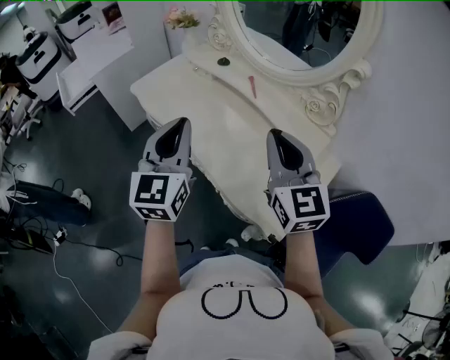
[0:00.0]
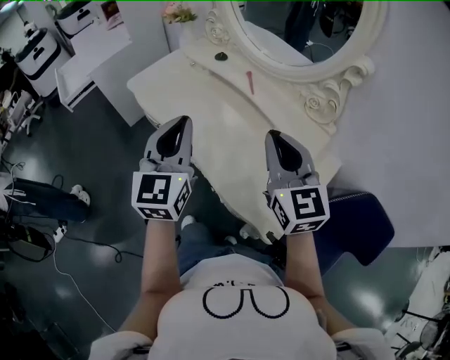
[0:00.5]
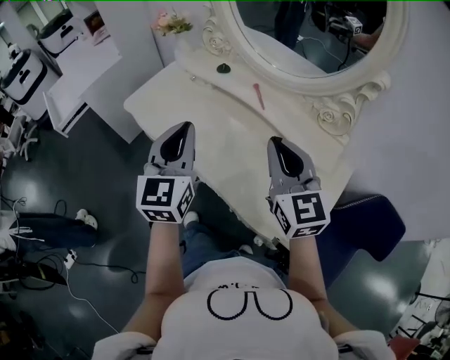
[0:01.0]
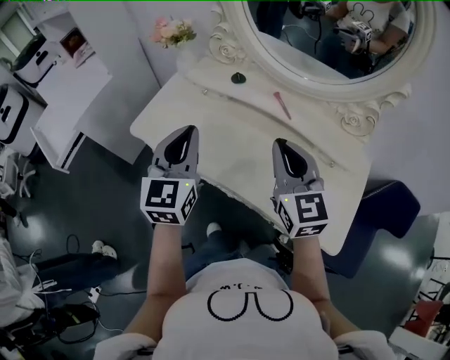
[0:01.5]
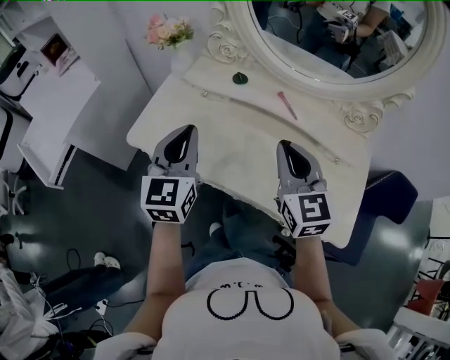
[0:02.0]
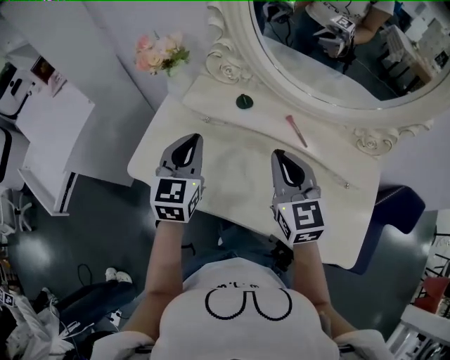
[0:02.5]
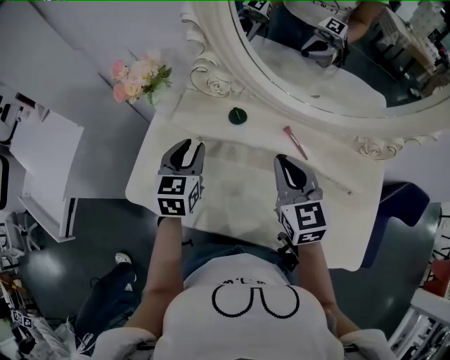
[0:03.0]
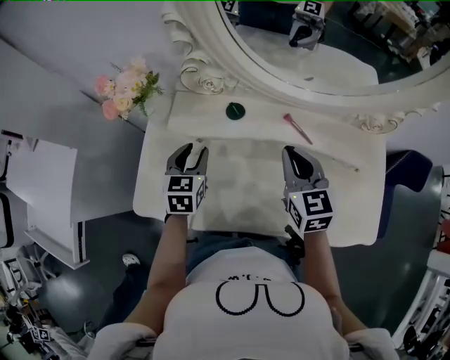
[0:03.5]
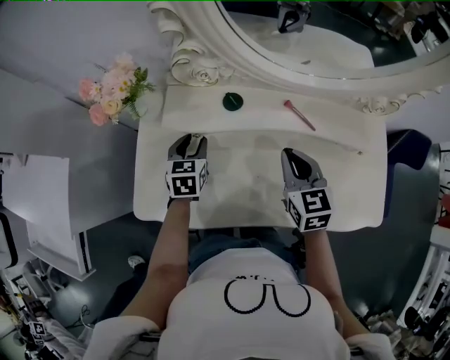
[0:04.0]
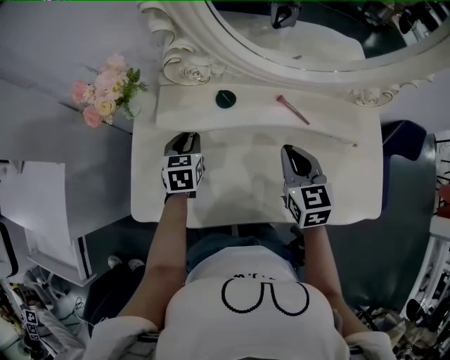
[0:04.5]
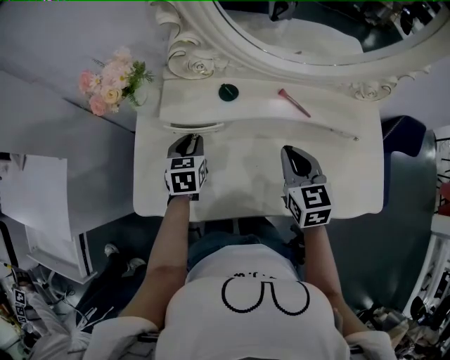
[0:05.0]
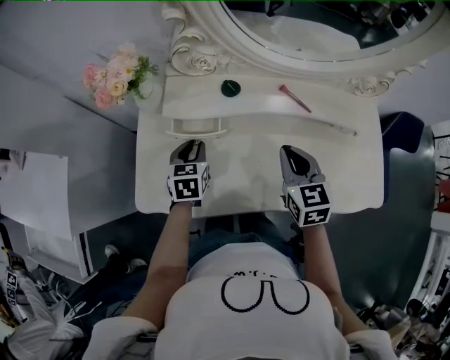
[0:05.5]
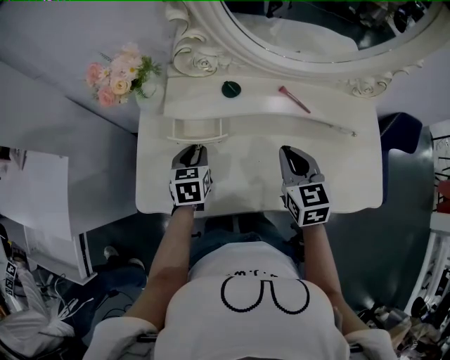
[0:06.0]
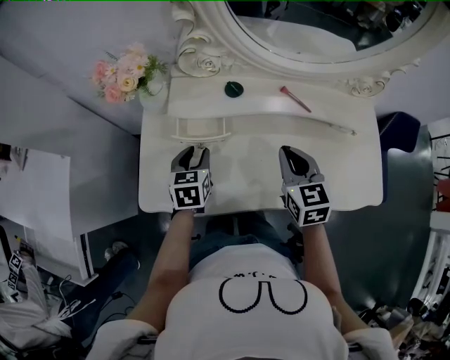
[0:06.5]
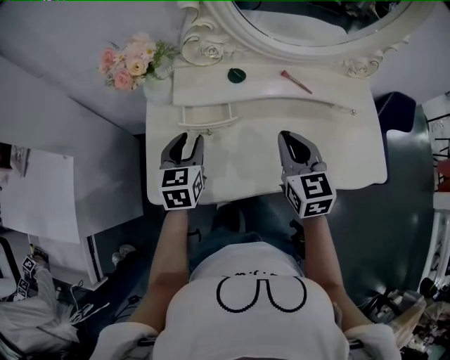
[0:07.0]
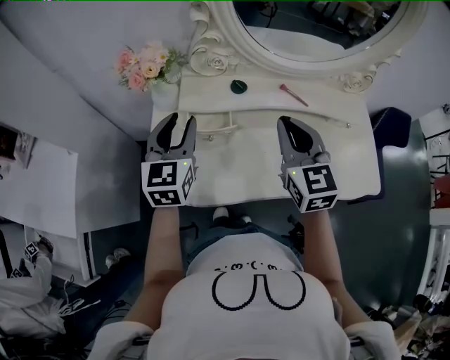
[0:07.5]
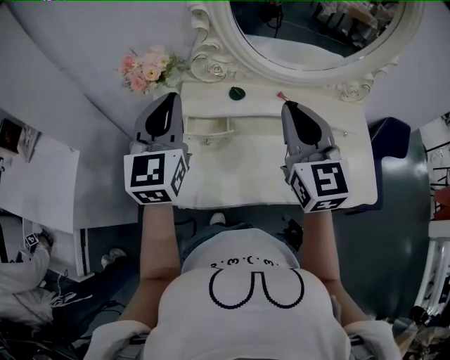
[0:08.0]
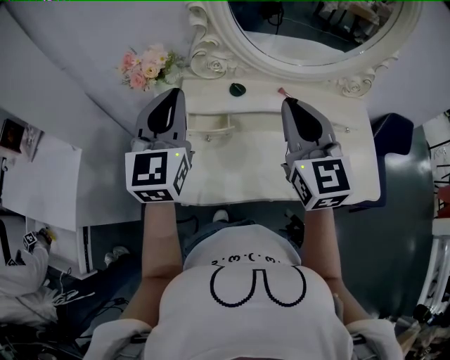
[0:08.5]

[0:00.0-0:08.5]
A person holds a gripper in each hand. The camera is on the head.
0:00.0 to 0:02.0: The right gripper shifts roughly 25 cm to the left and forward, and rotates about 20 degrees, while the left gripper is displaced forward and to the left by roughly 30 cm, and changes its angle by about 20 degrees.
0:02.0 to 0:04.0: The left gripper heads forward and downward, covering roughly 35 cm, tips its fingers downward by some 30 degrees, and opens its fingers. Meanwhile the right gripper travels forward and downward by approximately 20 cm, and turns by approximately 30 degrees.
0:04.0 to 0:06.5: Both grippers travel together backward, about 5 cm.
0:06.5 to 0:08.5: The grippers both shift upward by some 25 cm. The right gripper turns by some 30 degrees; the left gripper angles its fingers upward, by about 40 degrees, and closes its fingers.

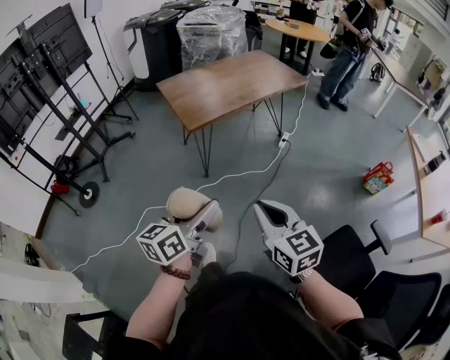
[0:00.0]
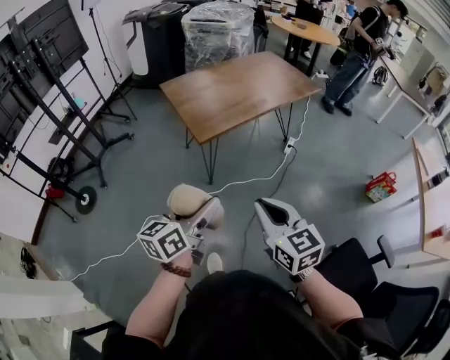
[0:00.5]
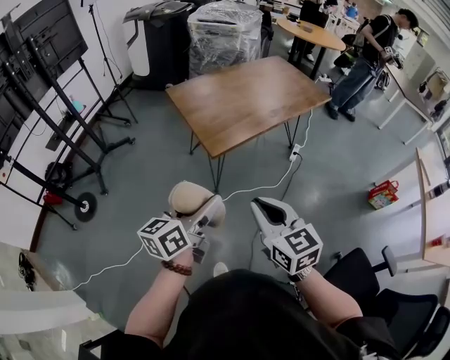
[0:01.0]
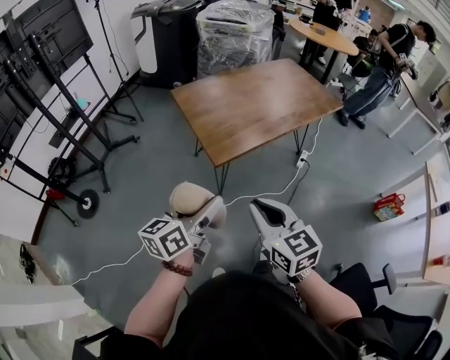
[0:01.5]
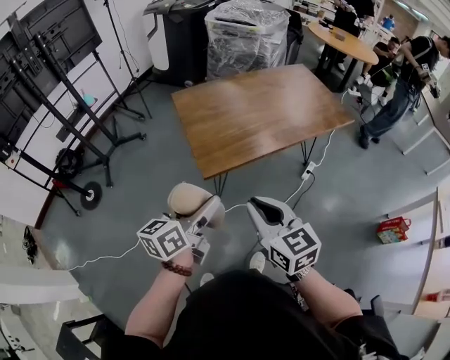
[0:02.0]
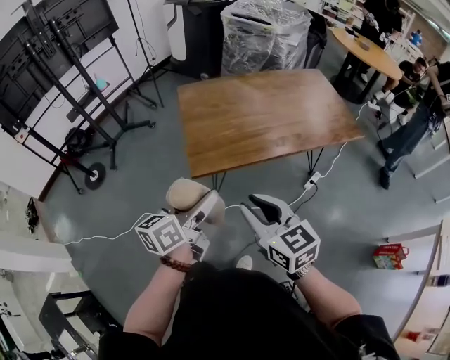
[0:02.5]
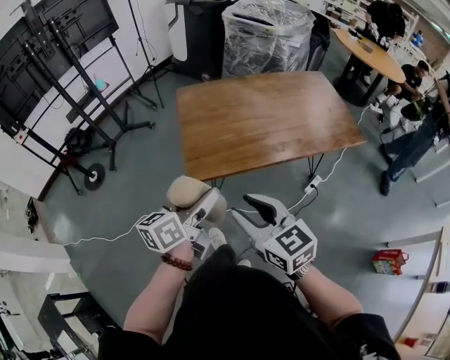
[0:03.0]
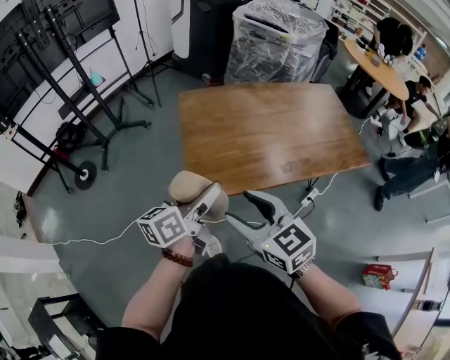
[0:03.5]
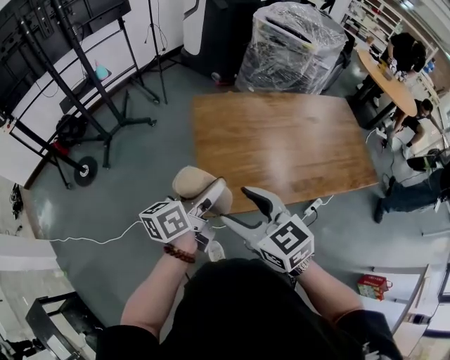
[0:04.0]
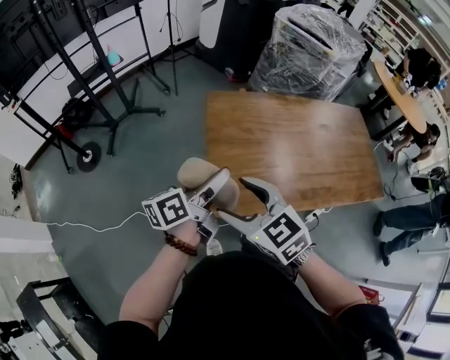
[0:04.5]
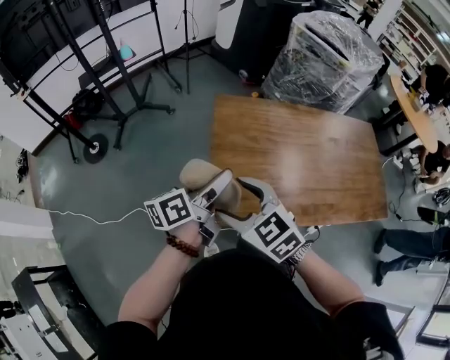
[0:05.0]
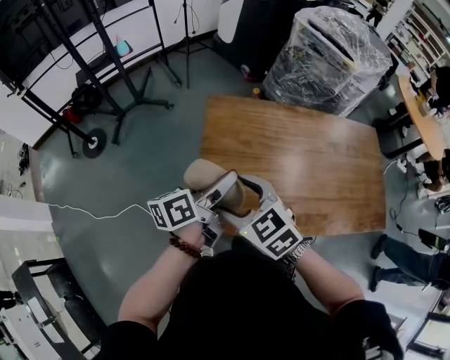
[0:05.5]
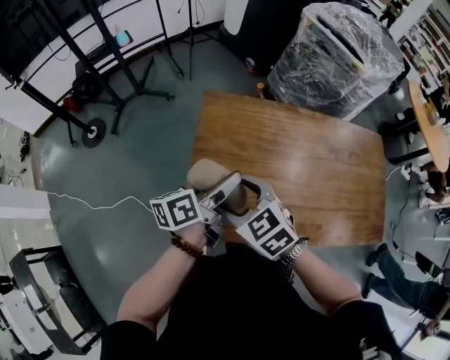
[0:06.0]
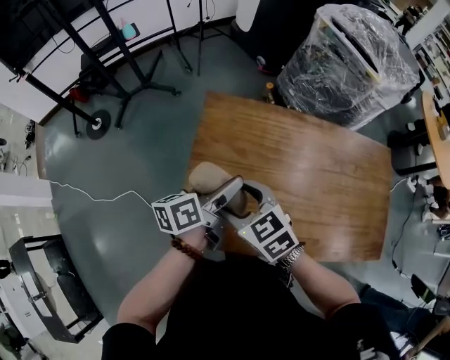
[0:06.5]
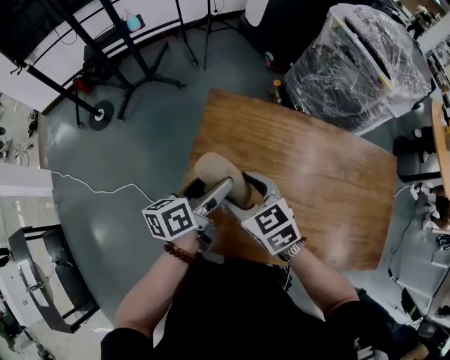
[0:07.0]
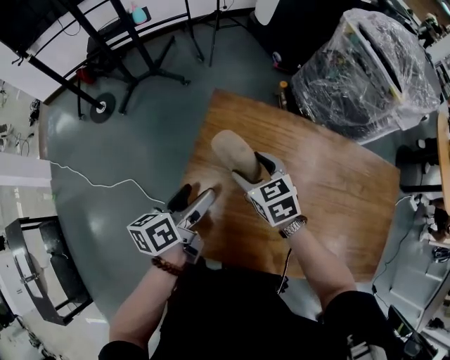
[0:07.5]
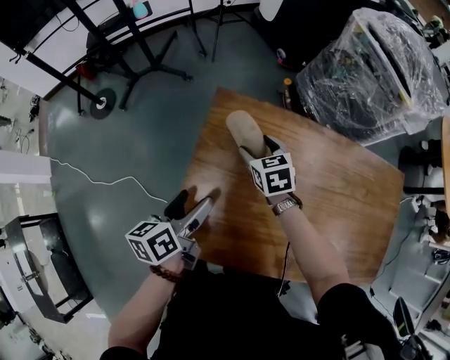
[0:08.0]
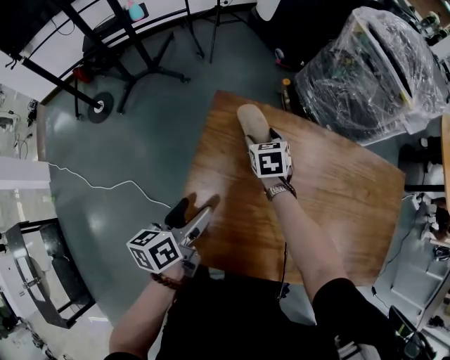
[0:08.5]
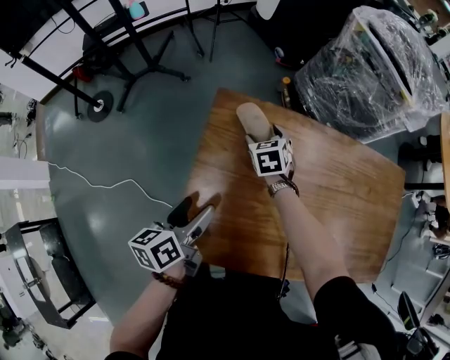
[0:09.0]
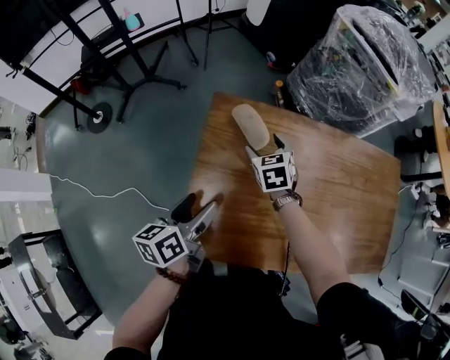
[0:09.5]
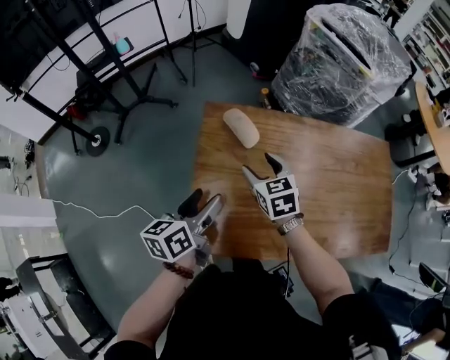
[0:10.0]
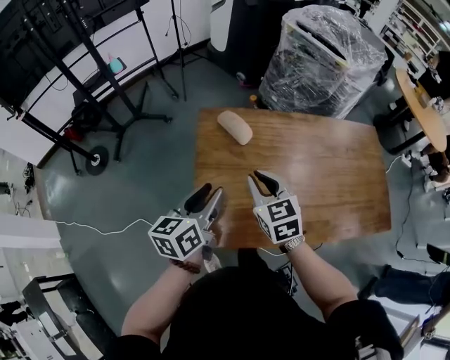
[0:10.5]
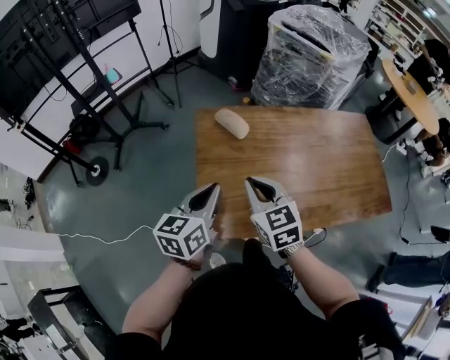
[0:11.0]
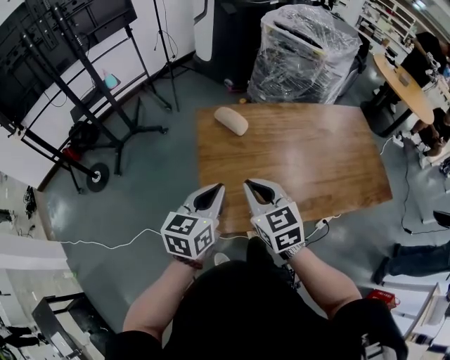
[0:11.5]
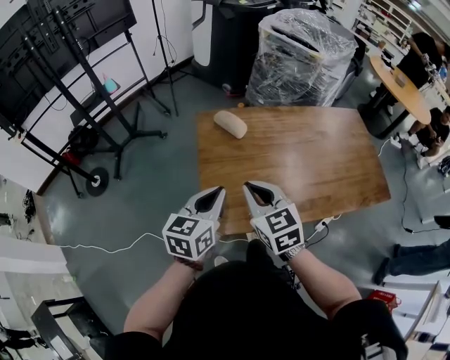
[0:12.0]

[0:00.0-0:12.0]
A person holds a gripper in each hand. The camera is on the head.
0:00.0 to 0:02.0: Both grippers travel together forward, about 35 cm.
0:02.0 to 0:04.0: The grippers both shift forward by approximately 20 cm. The right gripper rotates roughly 30 degrees, and opens.
0:04.0 to 0:06.0: The right gripper heads forward, downward and to the right, covering approximately 20 cm, and turns by about 30 degrees, while the left gripper travels forward and to the right by about 15 cm.
0:06.0 to 0:08.0: The left gripper goes approximately 10 cm downward and to the left, and turns by some 20 degrees, while the right gripper moves forward, downward and to the right, about 30 cm.
0:08.0 to 0:10.0: The right gripper shifts roughly 10 cm backward and upward, while the left gripper shifts by some 5 cm.
0:10.0 to 0:12.0: The left gripper heads backward and upward, covering roughly 10 cm, turns by approximately 30 degrees, and closes its fingers, while the right gripper is displaced backward and upward by about 20 cm, and closes.

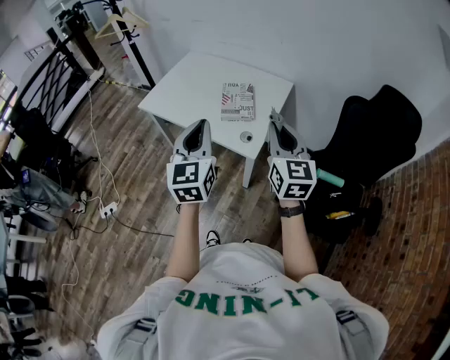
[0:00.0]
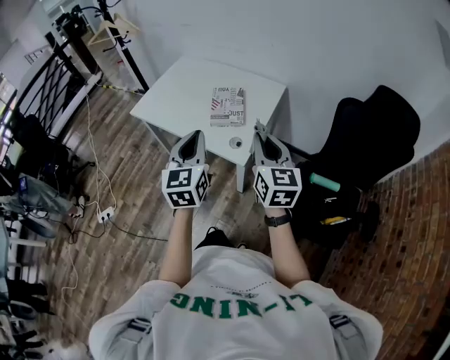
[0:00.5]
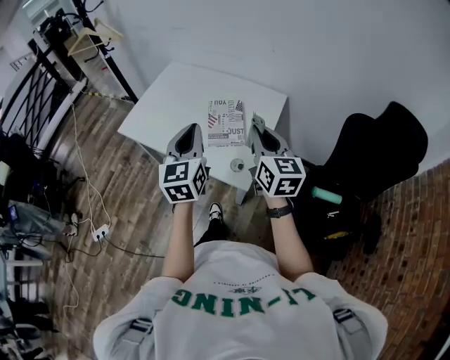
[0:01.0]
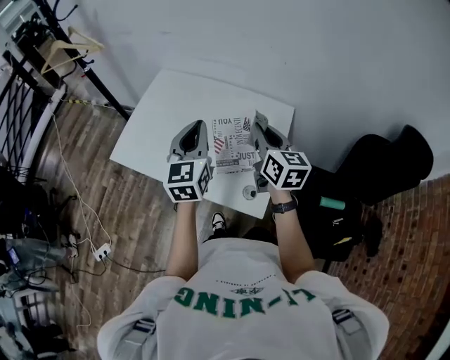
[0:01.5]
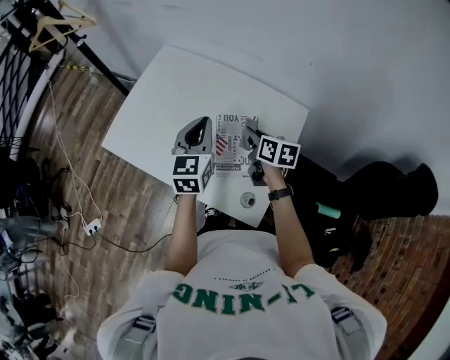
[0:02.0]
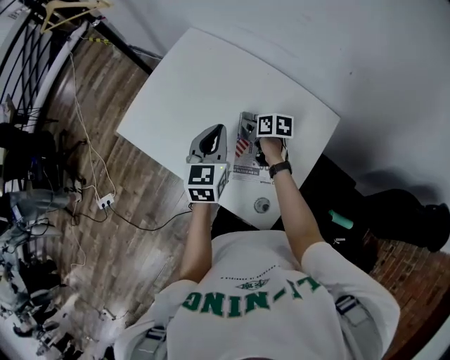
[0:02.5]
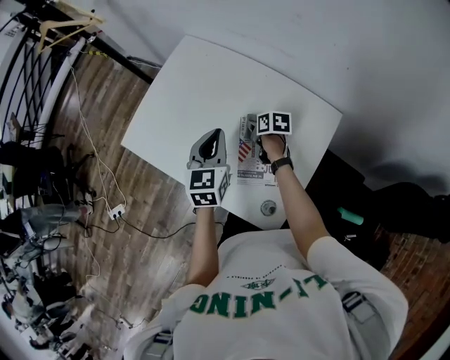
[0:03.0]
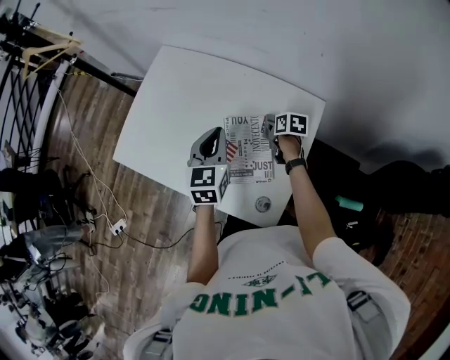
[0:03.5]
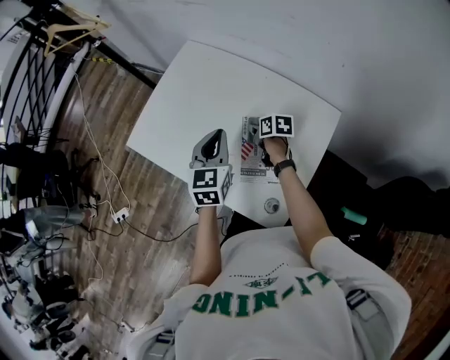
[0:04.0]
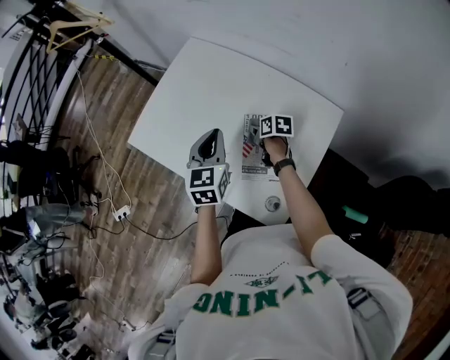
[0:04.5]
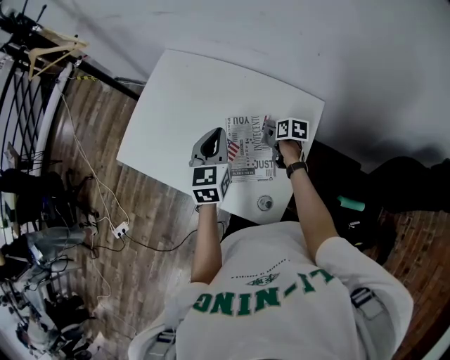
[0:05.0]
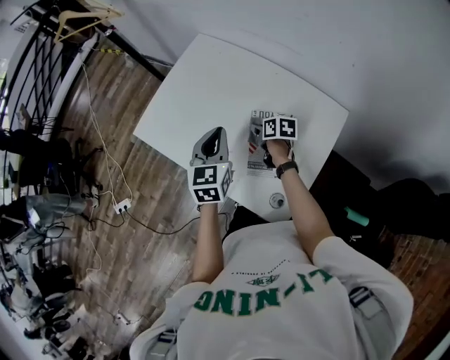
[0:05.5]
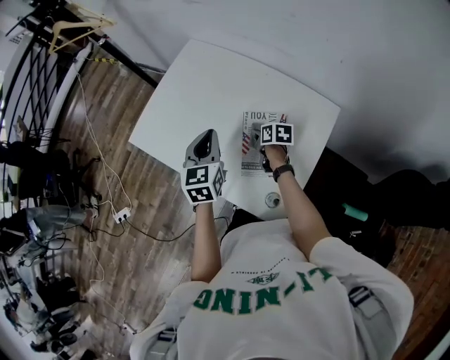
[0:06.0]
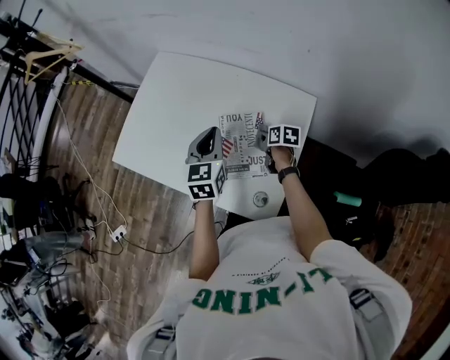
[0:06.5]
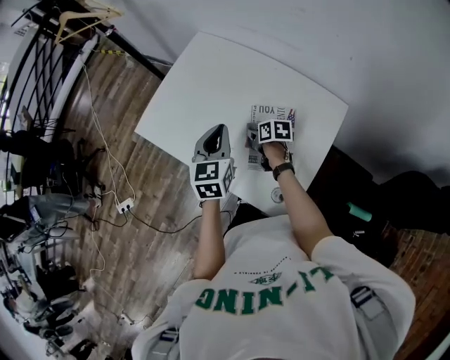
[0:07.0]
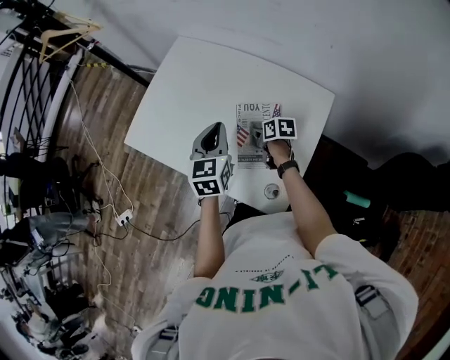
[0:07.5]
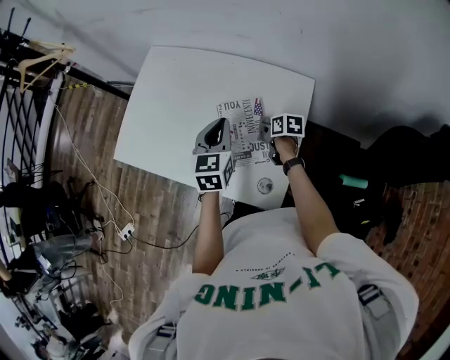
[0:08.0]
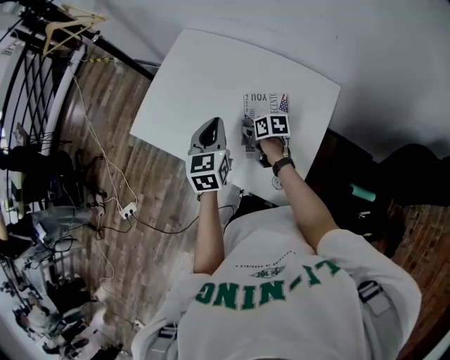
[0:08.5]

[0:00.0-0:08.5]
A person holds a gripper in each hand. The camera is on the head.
0:00.0 to 0:02.0: The pair of grippers is taken forward, some 50 cm. The right gripper goes approximately 25 cm downward, and tilts its fingers approximately 30 degrees downward.
0:02.0 to 0:04.0: The right gripper heads downward and forward, covering approximately 15 cm, and turns by about 20 degrees.
0:04.0 to 0:06.5: The left gripper moves left and right over approximately 10 cm, changing direction 2 times, while the right gripper swings left and right, about 15 cm each way, with 2 reversals.
0:06.5 to 0:08.5: The right gripper goes left and right, approximately 15 cm each way, reversing 2 times. Meanwhile the left gripper swings left and right, about 10 cm each way, with 2 reversals.
